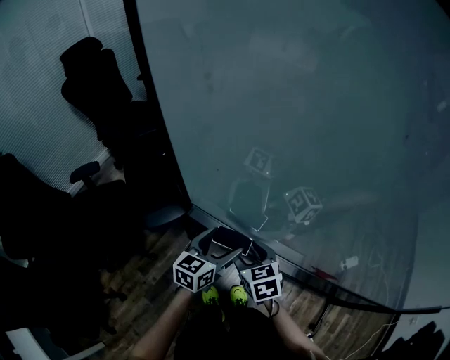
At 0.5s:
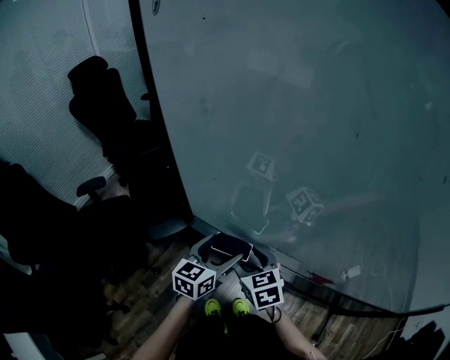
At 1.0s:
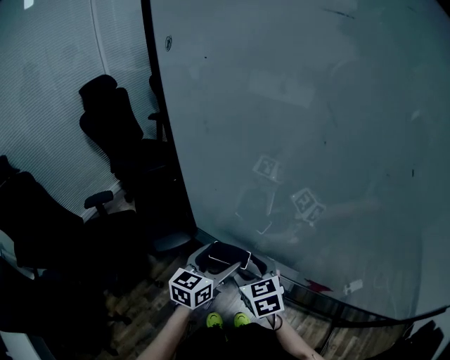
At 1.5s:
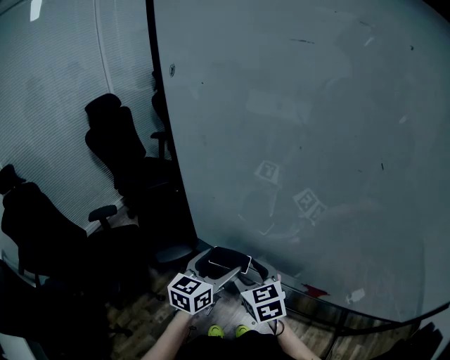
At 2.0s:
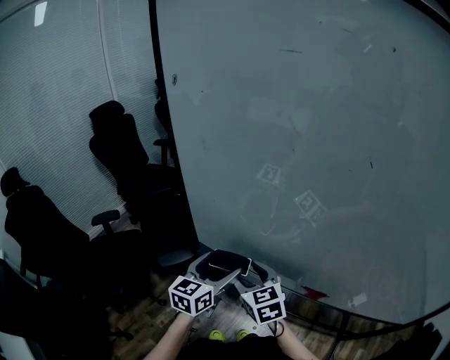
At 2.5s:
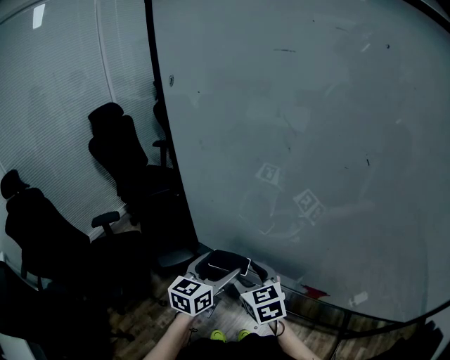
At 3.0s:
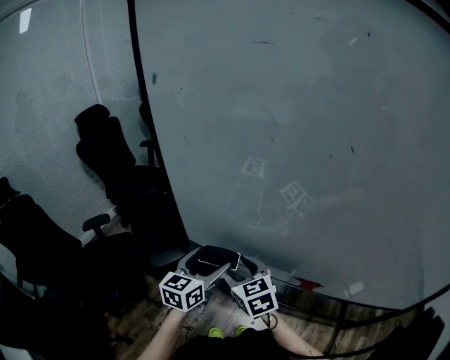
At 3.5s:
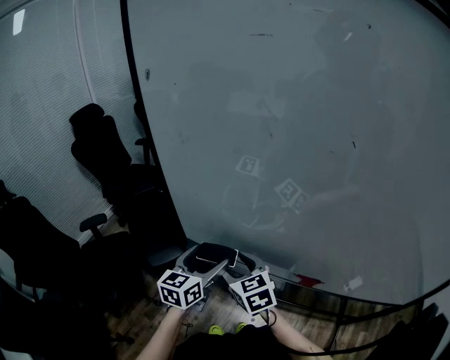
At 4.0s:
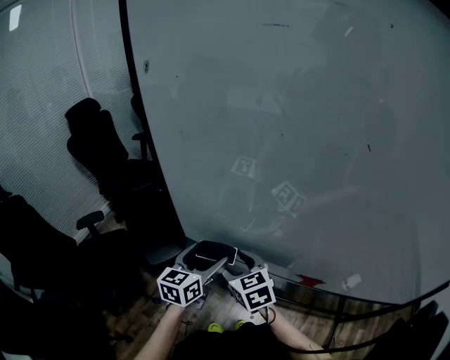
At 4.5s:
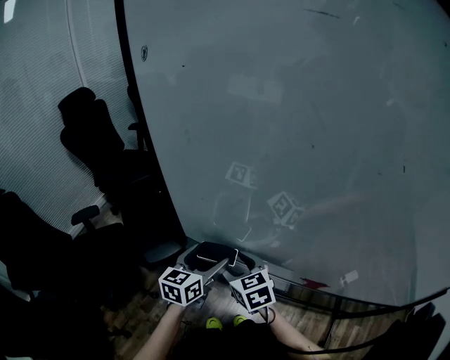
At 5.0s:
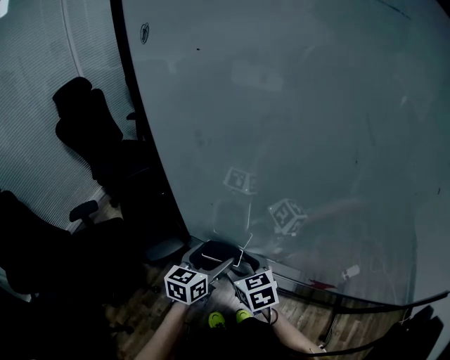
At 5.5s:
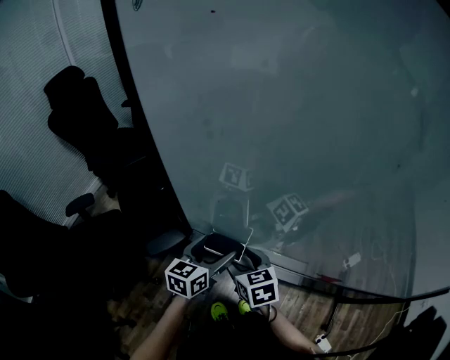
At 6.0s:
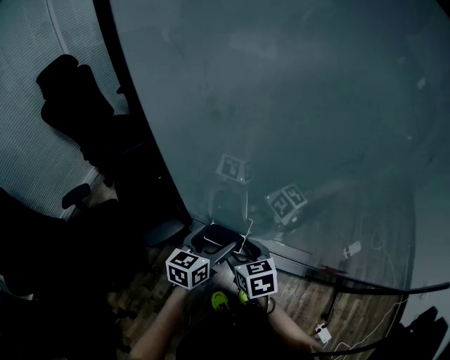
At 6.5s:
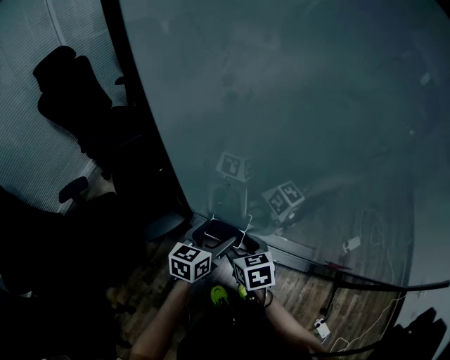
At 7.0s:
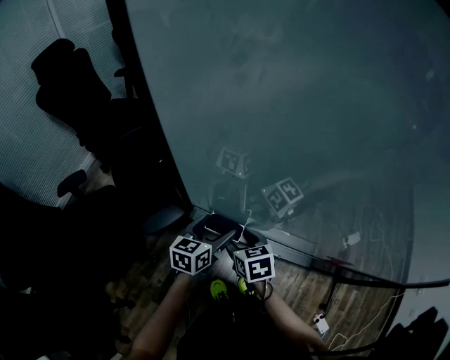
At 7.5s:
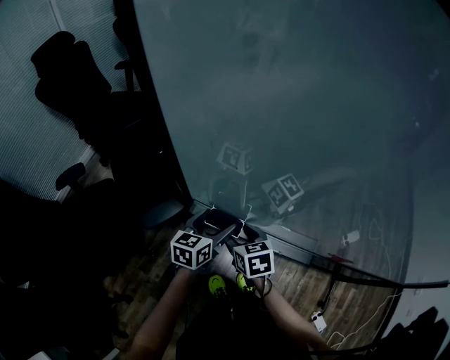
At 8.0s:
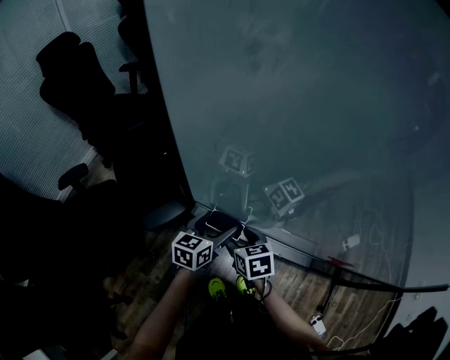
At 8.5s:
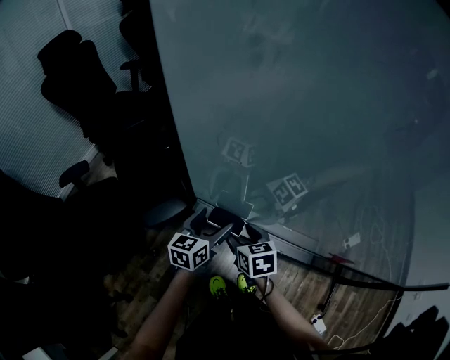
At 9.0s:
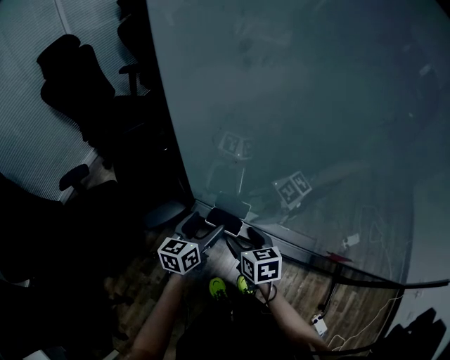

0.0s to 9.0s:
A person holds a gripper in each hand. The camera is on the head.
0.0s to 2.0s: Both grippers travel together upward, some 15 cm.
2.0s to 4.5s: Both grippers move downward, about 5 cm.
4.5s to 7.0s: The two grippers go approximately 10 cm downward. The right gripper swivels approximately 20 degrees.
7.0s to 9.0s: There are only small adjustments of the grippers.

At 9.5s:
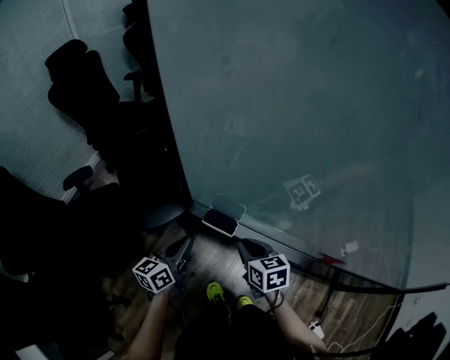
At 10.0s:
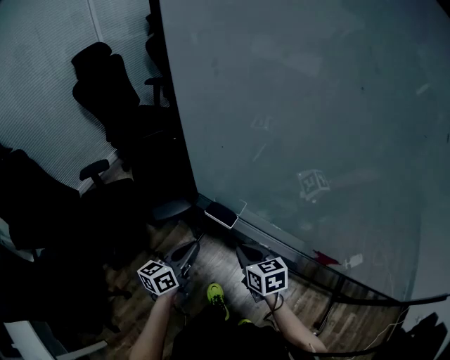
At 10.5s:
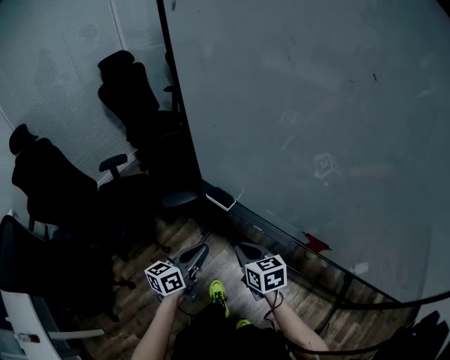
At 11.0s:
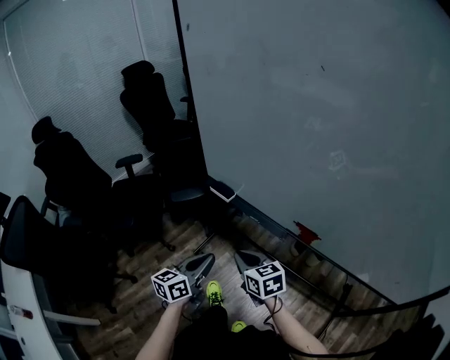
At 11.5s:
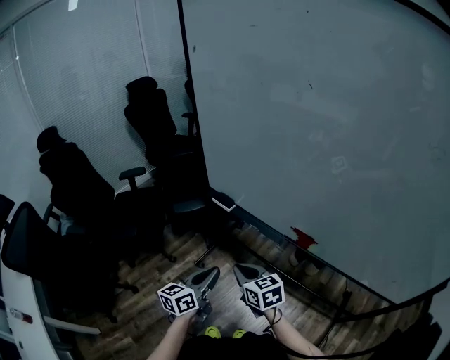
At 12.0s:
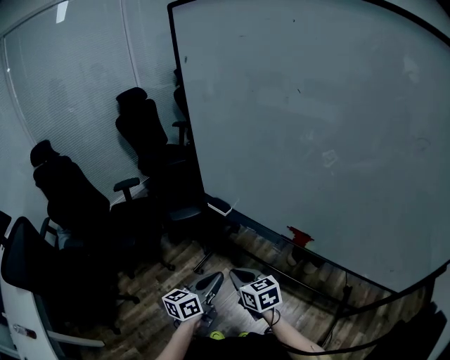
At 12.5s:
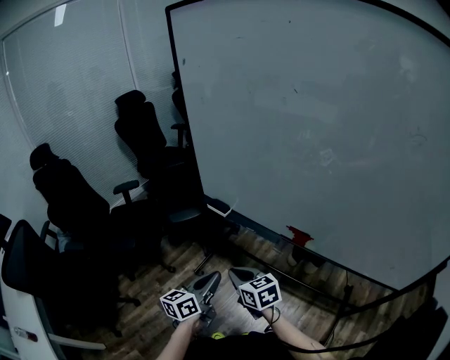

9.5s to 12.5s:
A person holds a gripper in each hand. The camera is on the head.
9.5s to 11.0s: The left gripper is displaced backward and to the right by approximately 25 cm; the right gripper heads backward, covering approximately 20 cm, and turns by about 20 degrees.
11.0s to 12.5s: The right gripper ends up about 5 cm from where it was.

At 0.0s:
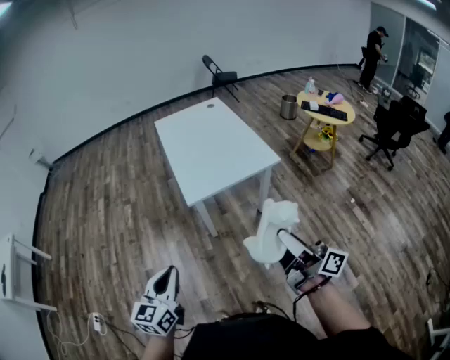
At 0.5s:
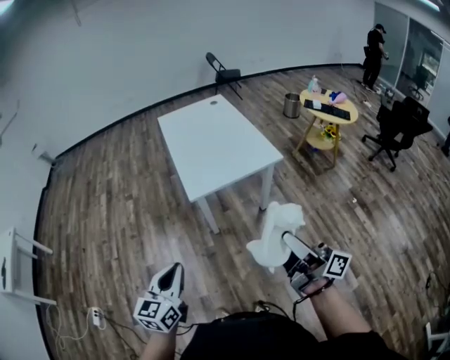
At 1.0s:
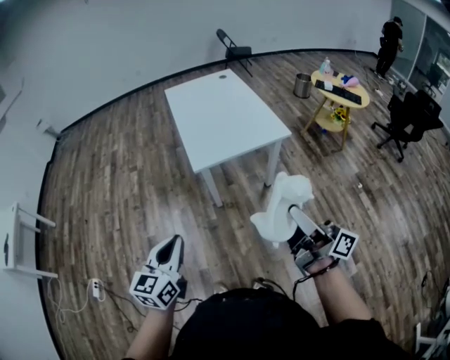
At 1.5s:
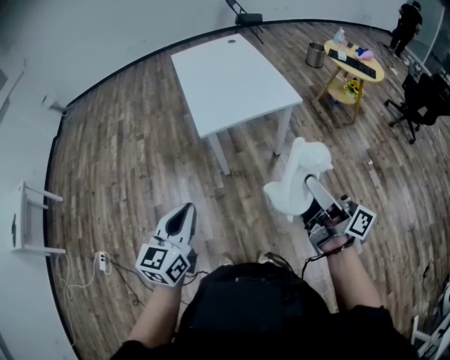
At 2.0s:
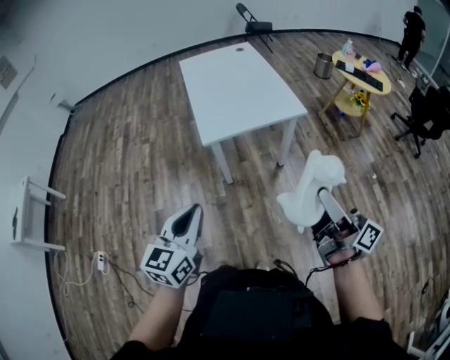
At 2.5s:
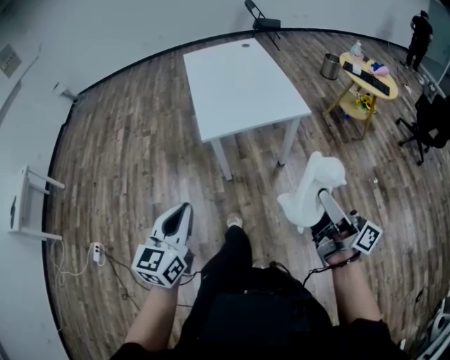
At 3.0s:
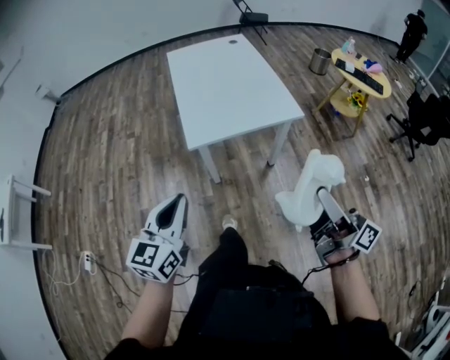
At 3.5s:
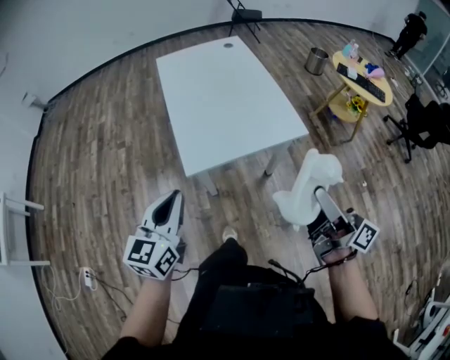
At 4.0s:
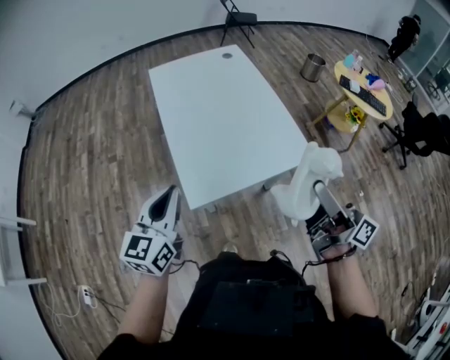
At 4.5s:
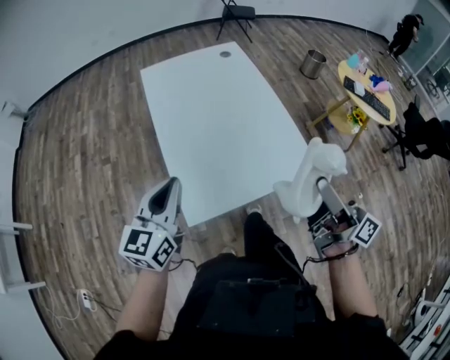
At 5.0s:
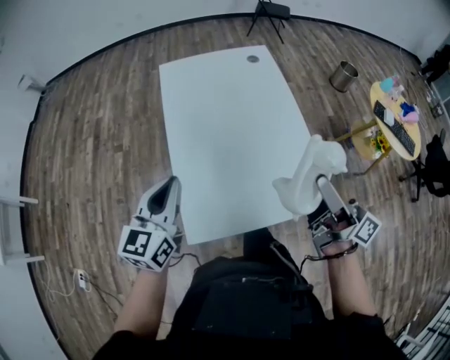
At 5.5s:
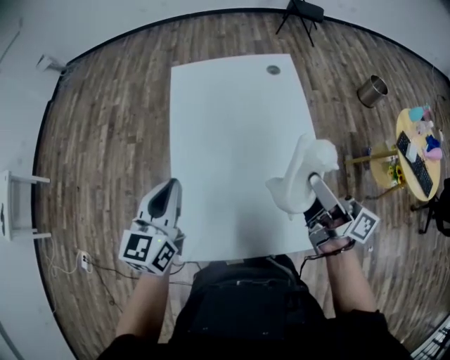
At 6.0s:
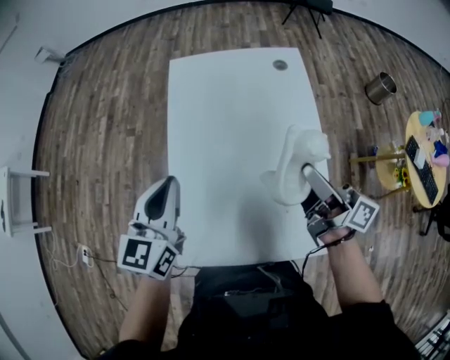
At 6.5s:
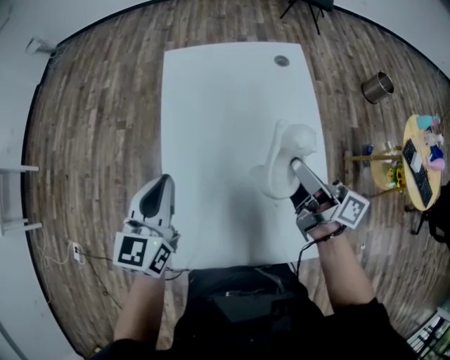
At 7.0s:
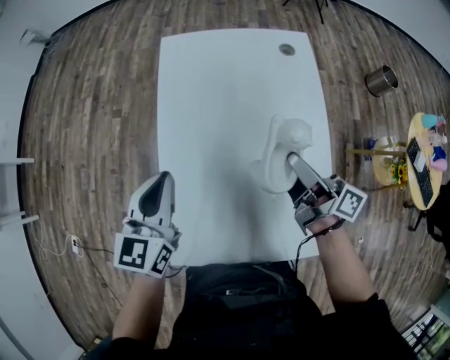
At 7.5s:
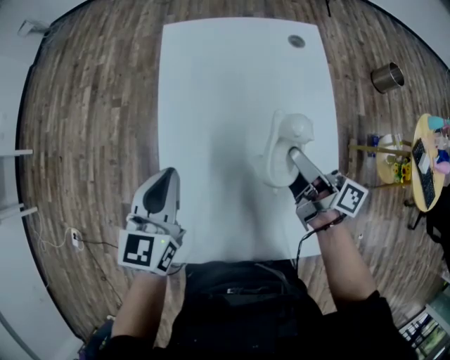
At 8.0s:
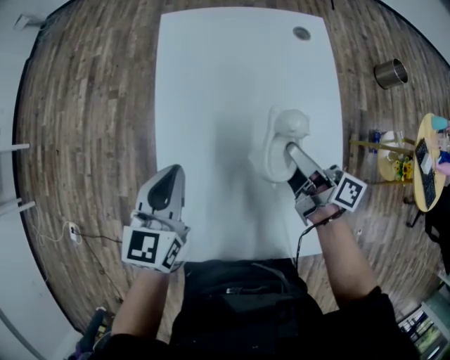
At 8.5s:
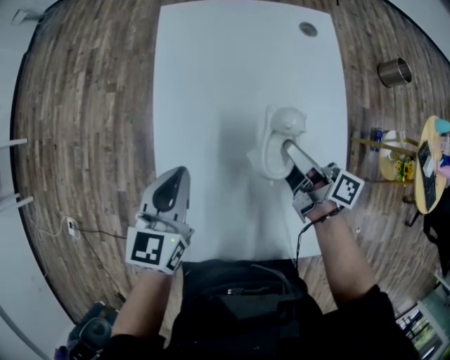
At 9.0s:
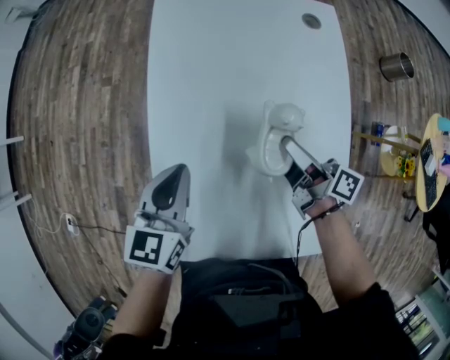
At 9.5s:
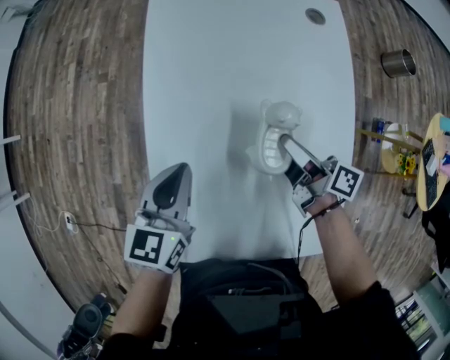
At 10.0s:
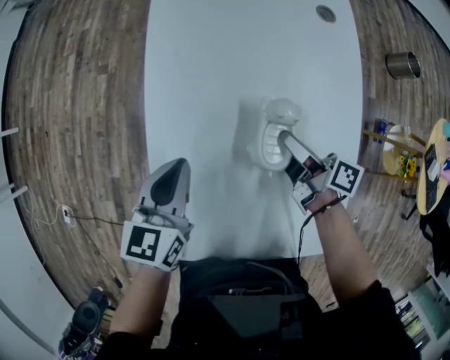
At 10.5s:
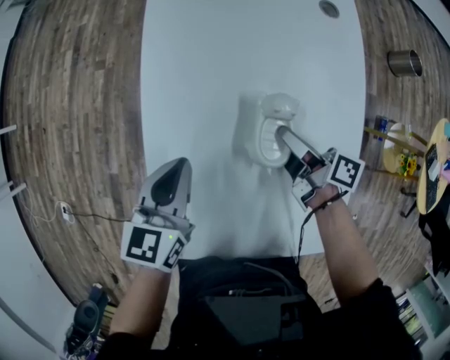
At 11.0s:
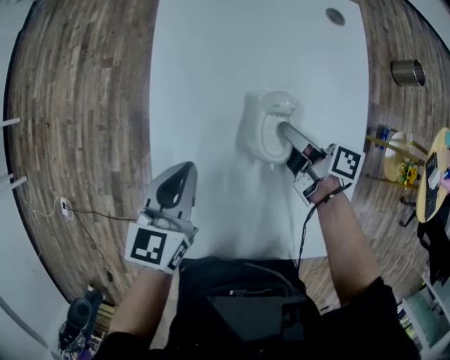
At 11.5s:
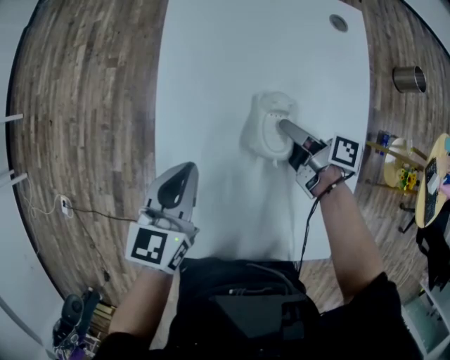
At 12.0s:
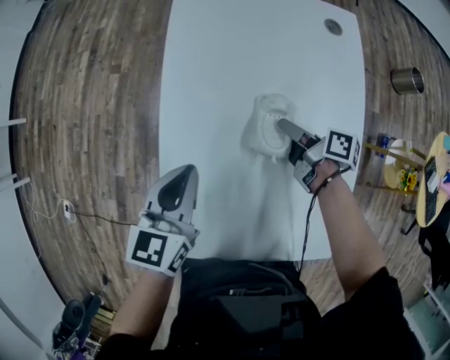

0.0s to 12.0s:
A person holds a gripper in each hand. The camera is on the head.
0.0s to 2.0s: The two grippers go approximately 10 cm to the right.
2.0s to 4.0s: Both grippers move forward, some 40 cm.
4.0s to 6.0s: The two grippers go some 40 cm forward. The left gripper rotates approximately 20 degrees. The right gripper turns by roughly 20 degrees.
6.0s to 8.0s: The left gripper moves downward, some 10 cm. Meanwhile the right gripper is displaced downward and forward by about 15 cm.
8.0s to 10.0s: The left gripper moves downward, approximately 5 cm, while the right gripper shifts roughly 10 cm downward.
10.0s to 12.0s: The grippers move only a little.

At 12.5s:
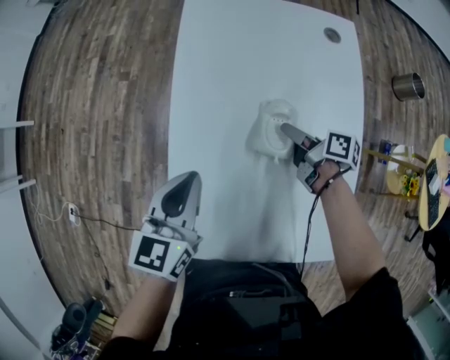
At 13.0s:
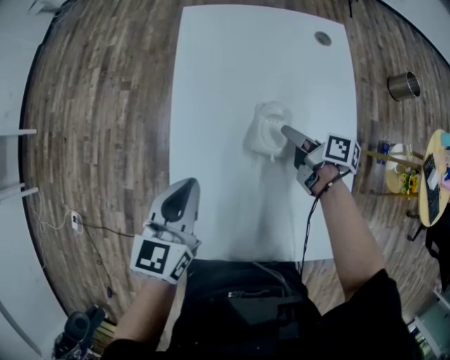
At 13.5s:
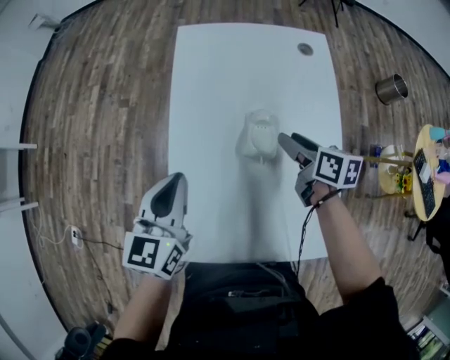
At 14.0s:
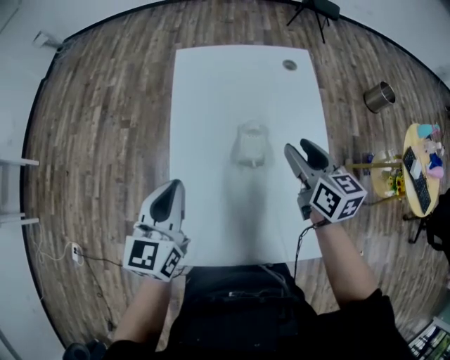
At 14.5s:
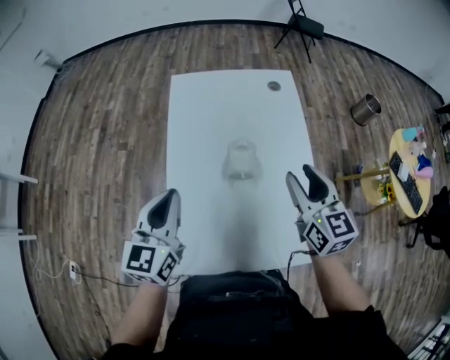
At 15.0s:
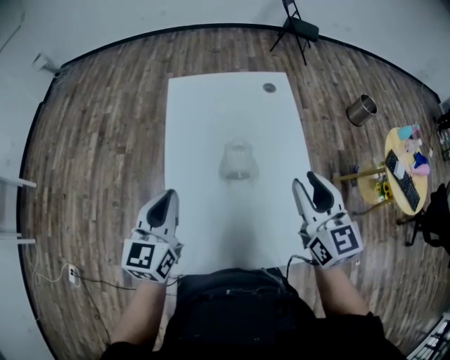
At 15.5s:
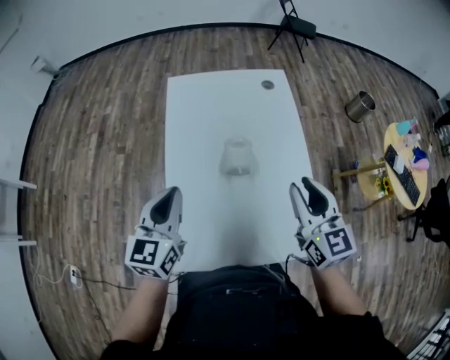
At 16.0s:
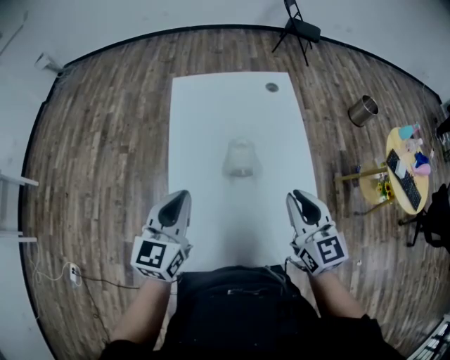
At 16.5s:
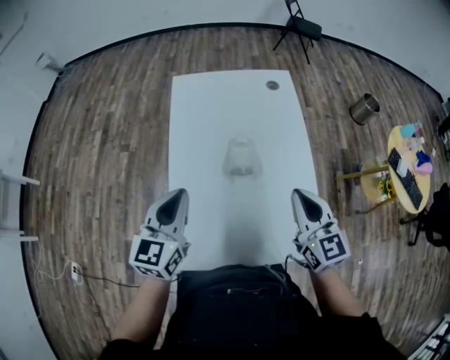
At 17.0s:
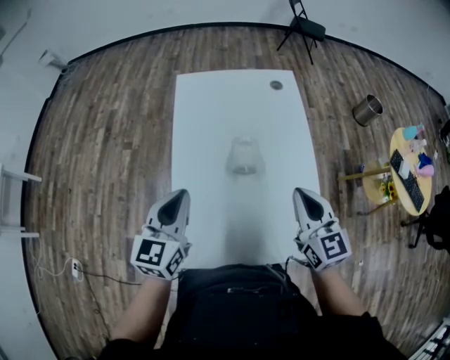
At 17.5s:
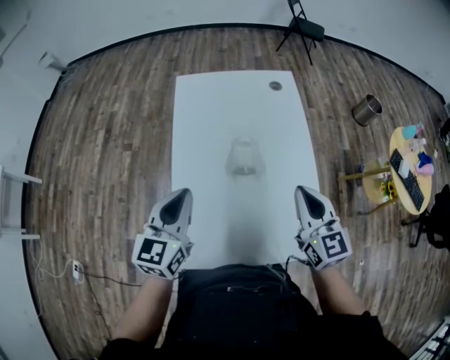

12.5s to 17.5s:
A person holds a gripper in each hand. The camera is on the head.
12.5s to 15.0s: The right gripper shifts about 40 cm upward and backward, and rolls counterclockwise, seen from behind, by roughly 70 degrees. Meanwhile the left gripper heads upward and backward, covering roughly 15 cm.
15.0s to 17.5s: The right gripper moves some 5 cm, and closes up.
